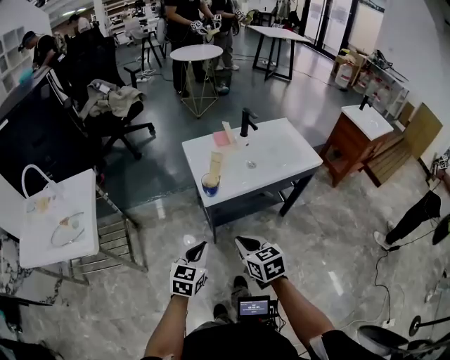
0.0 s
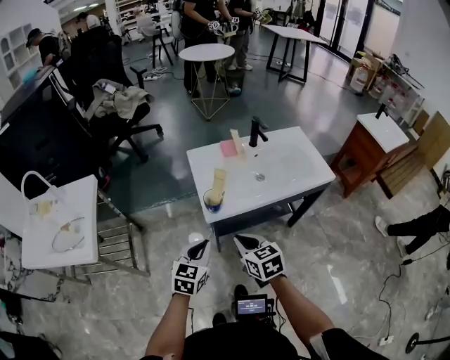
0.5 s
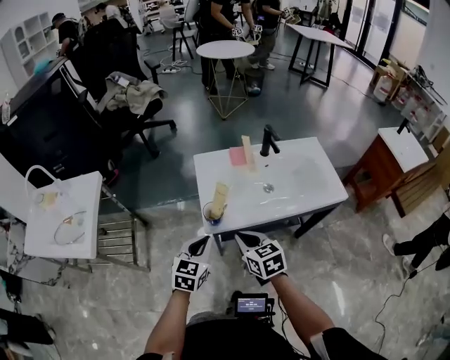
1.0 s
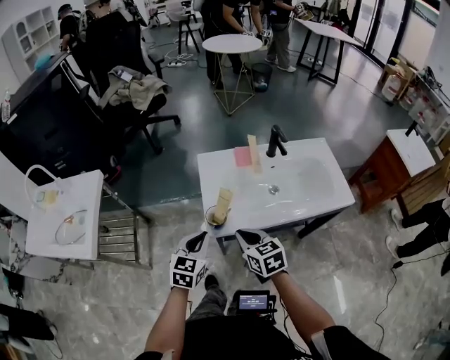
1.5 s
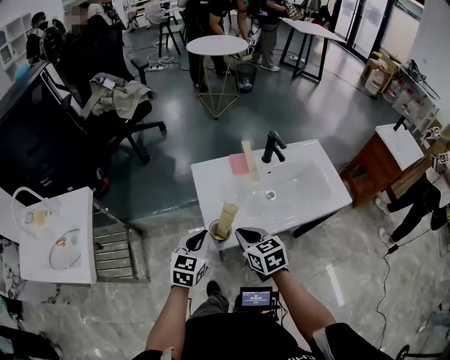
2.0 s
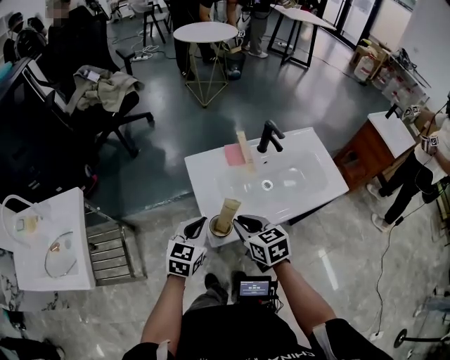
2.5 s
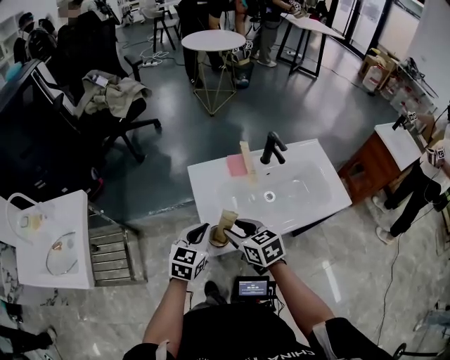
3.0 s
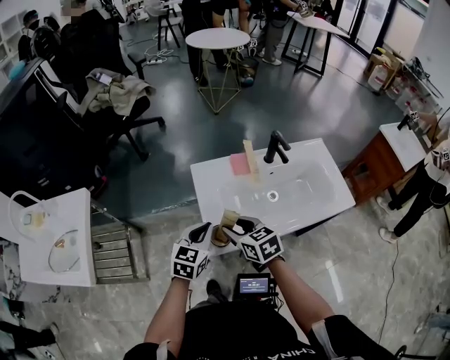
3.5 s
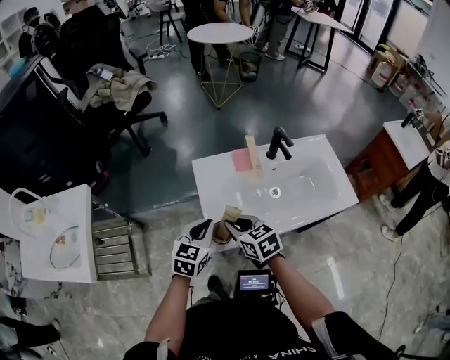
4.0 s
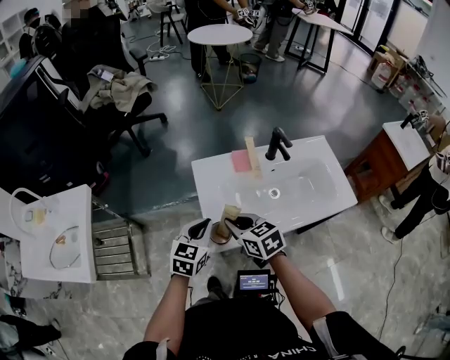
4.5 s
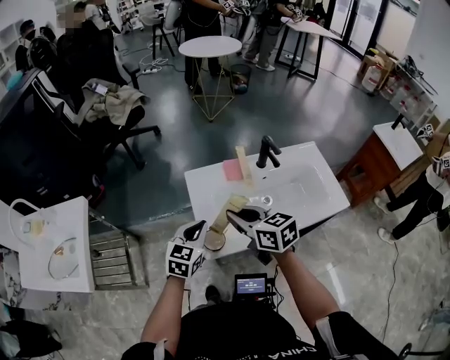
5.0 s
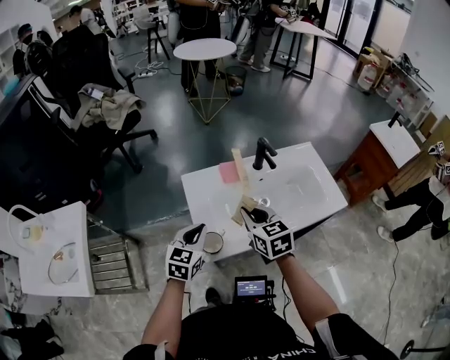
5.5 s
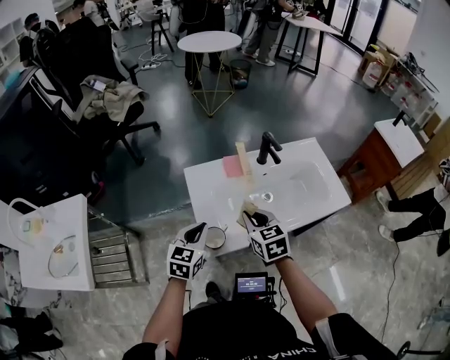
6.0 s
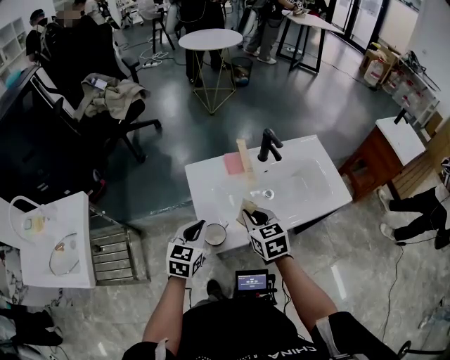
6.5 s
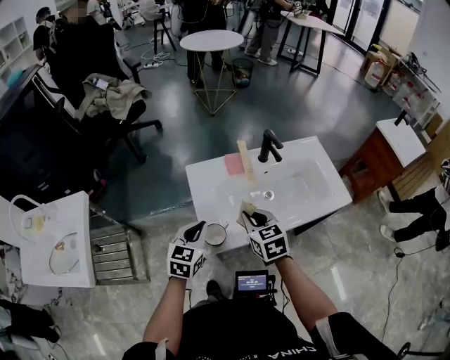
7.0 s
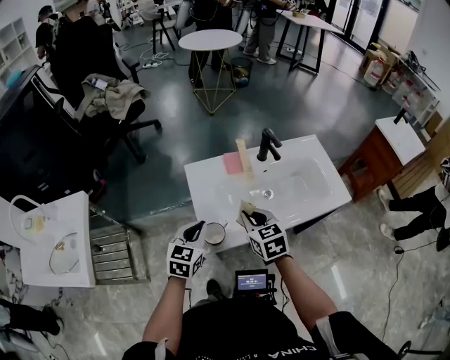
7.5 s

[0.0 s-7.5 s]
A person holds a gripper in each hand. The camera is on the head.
0.0 to 2.0 s: Both grippers travel together forward, approximately 25 cm.
2.0 to 4.0 s: The right gripper is displaced forward by some 5 cm, and opens, then closes once more.
4.0 to 5.5 s: The right gripper heads to the right and upward, covering roughly 10 cm.
5.5 to 7.5 s: The right gripper moves about 5 cm.

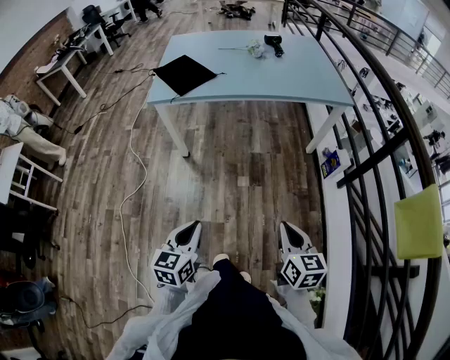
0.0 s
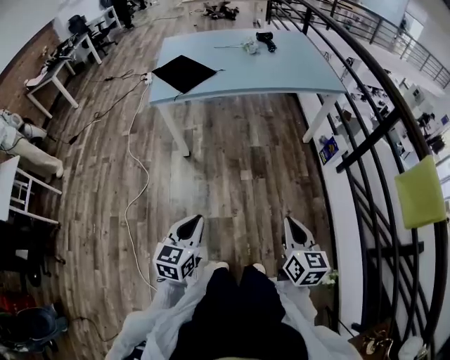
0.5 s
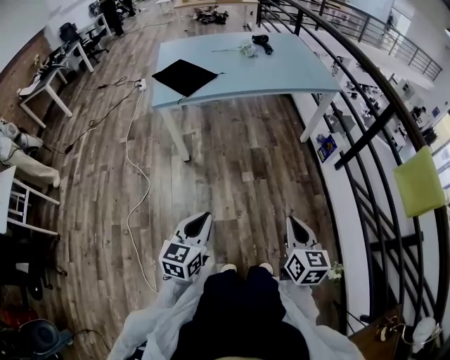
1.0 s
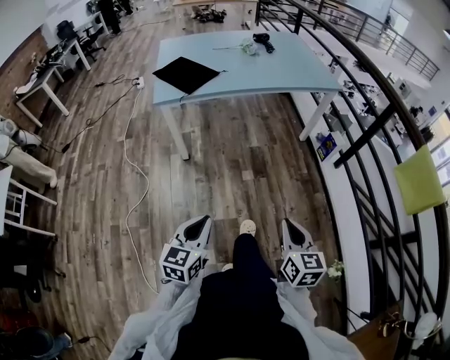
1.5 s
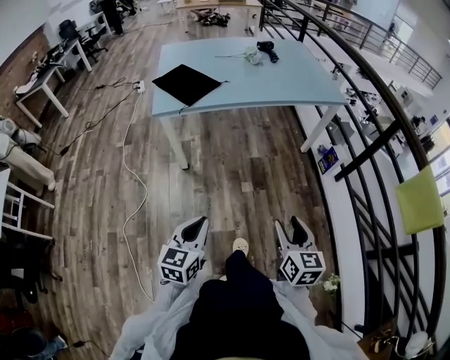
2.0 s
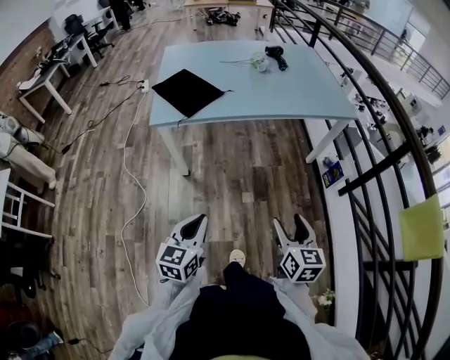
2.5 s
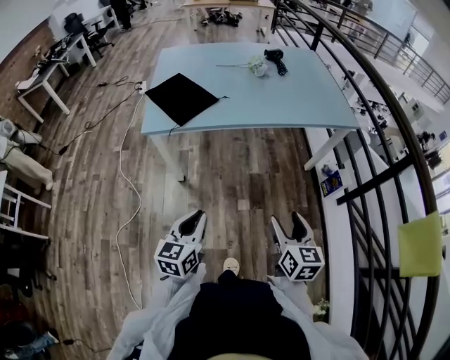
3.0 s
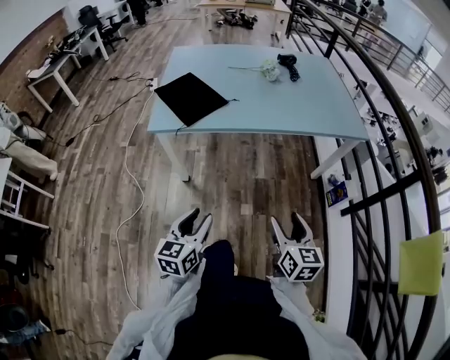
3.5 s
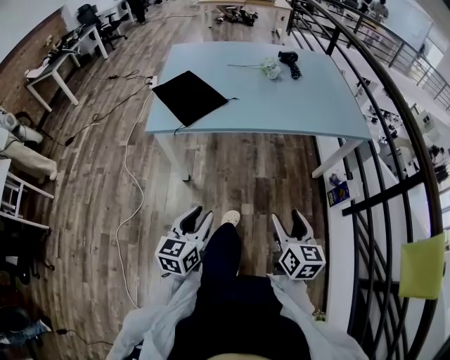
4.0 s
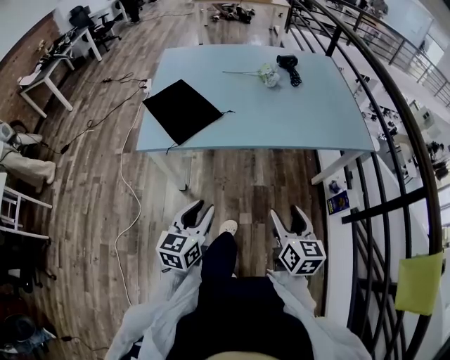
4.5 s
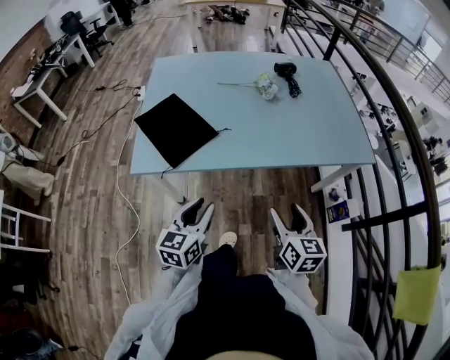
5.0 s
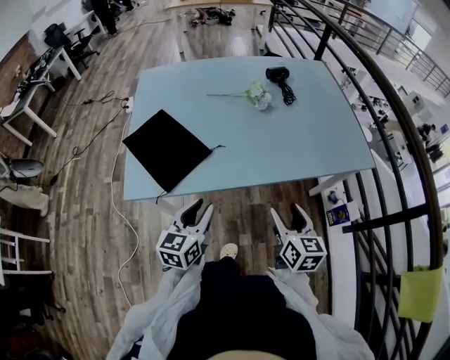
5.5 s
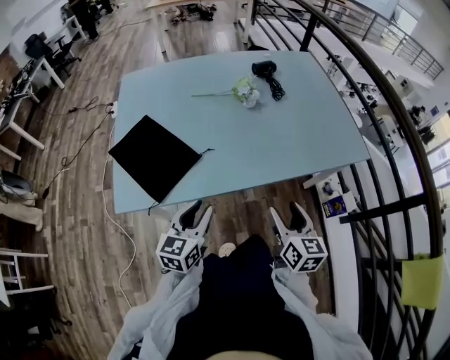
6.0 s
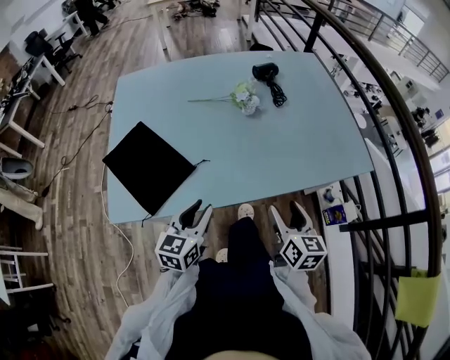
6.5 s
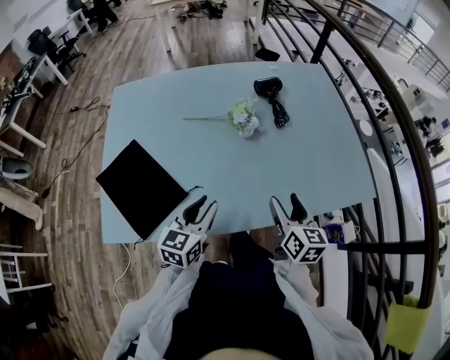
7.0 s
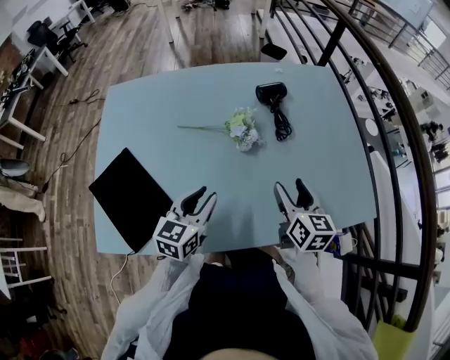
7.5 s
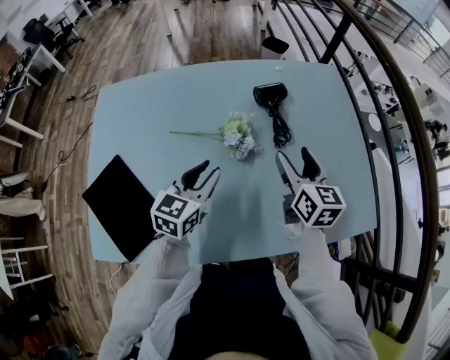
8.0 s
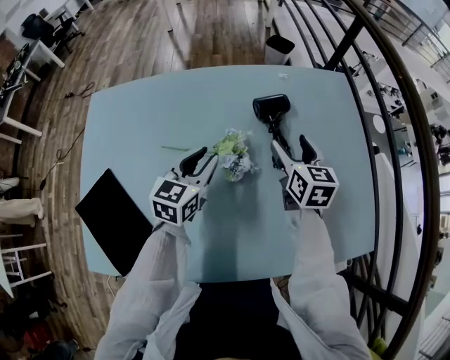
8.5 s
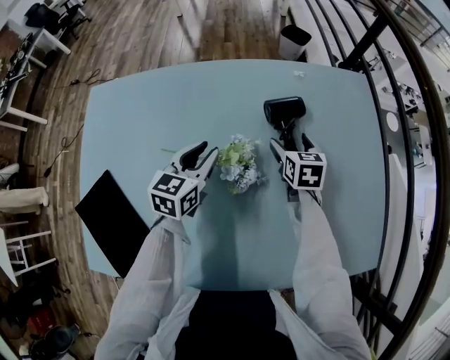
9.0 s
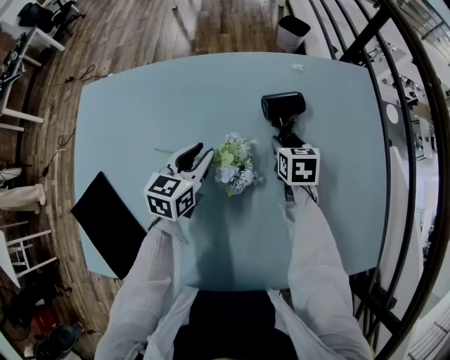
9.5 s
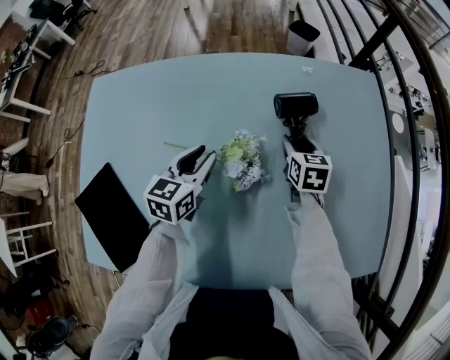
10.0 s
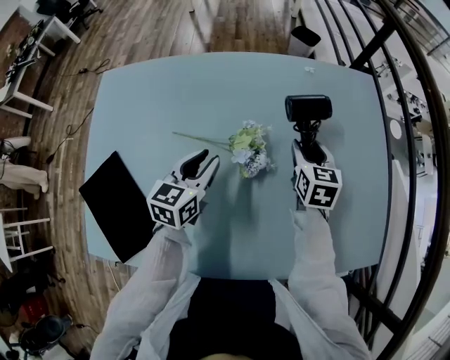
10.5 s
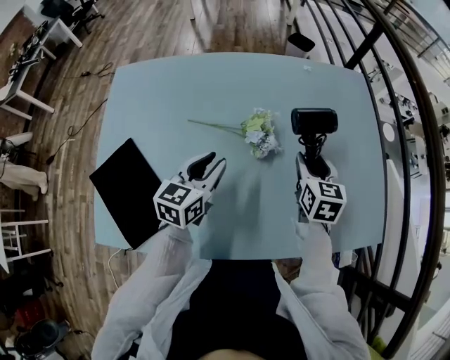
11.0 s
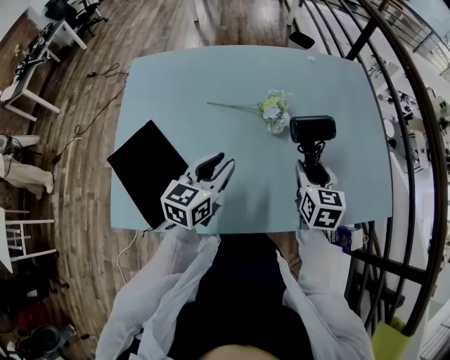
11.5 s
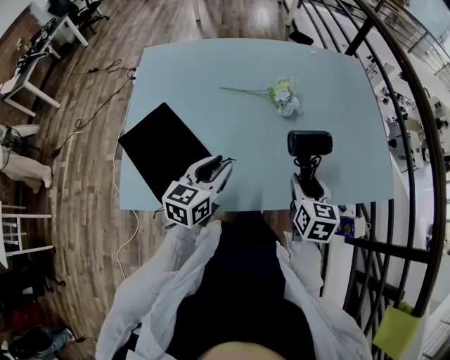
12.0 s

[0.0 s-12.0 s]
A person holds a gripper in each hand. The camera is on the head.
0.0 to 2.0 s: The two grippers go roughly 15 cm to the left. The right gripper opens its fingers.
2.0 to 4.0 s: Both grippers travel together forward, about 20 cm. The left gripper opens up.
4.0 to 6.0 s: Both grippers travel together forward, roughly 30 cm.
6.0 to 8.0 s: Both grippers travel together forward, roughly 40 cm.
8.0 to 10.0 s: The left gripper moves forward and downward, about 15 cm, while the right gripper heads forward and downward, covering roughly 25 cm, and turns by roughly 20 degrees.
10.0 to 12.0 s: The grippers both shift backward by some 35 cm.

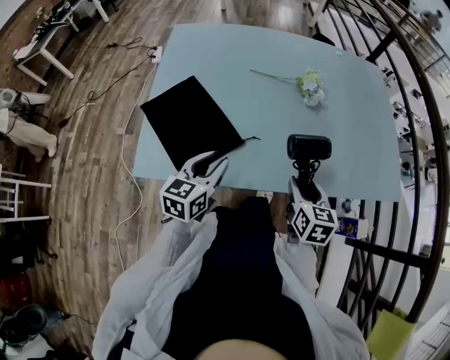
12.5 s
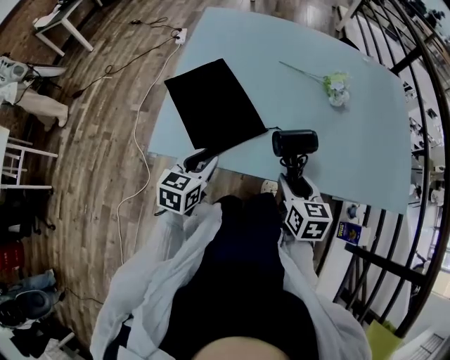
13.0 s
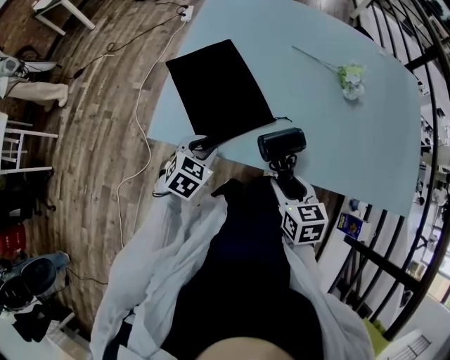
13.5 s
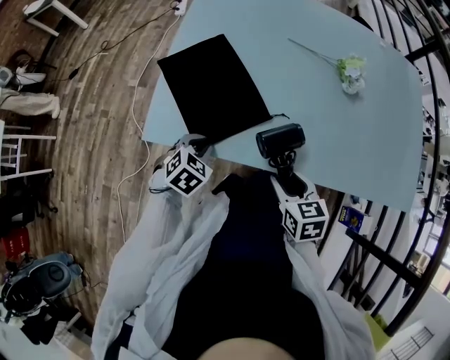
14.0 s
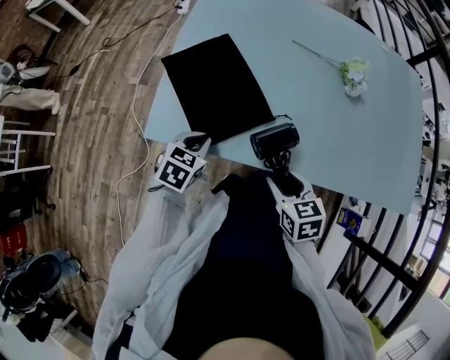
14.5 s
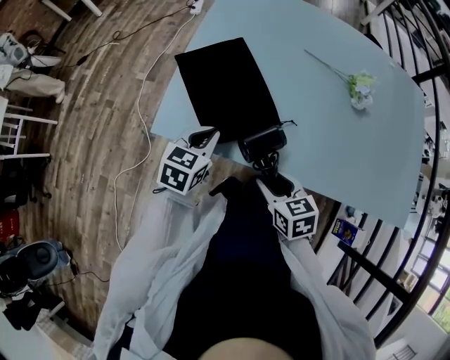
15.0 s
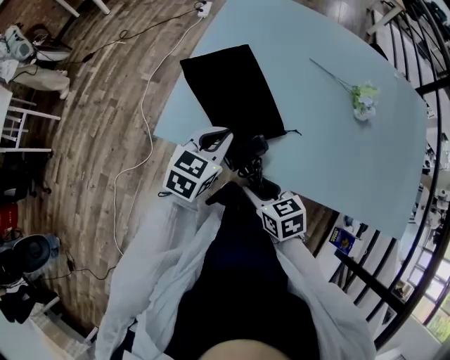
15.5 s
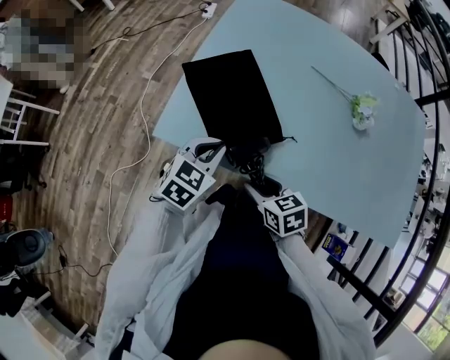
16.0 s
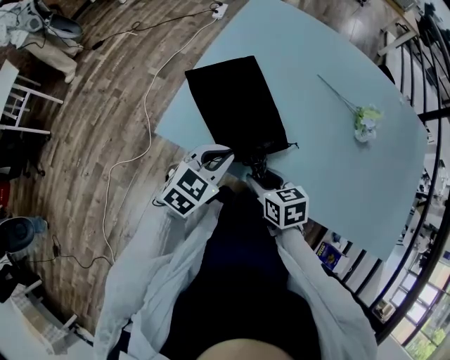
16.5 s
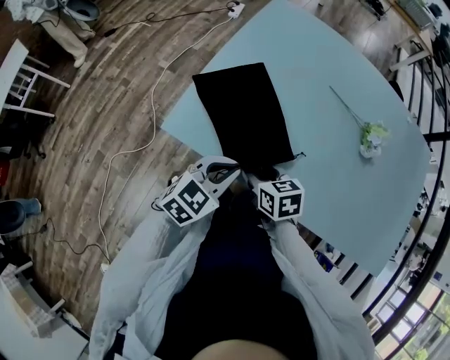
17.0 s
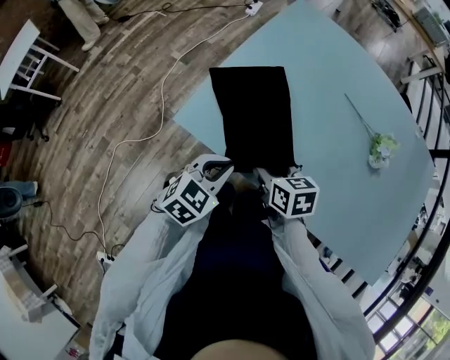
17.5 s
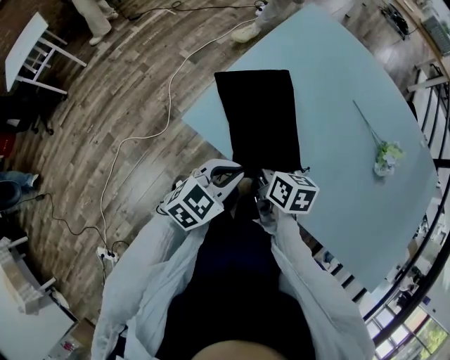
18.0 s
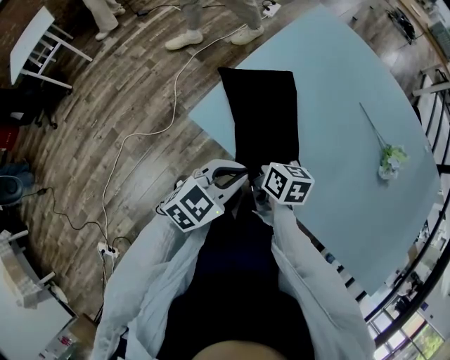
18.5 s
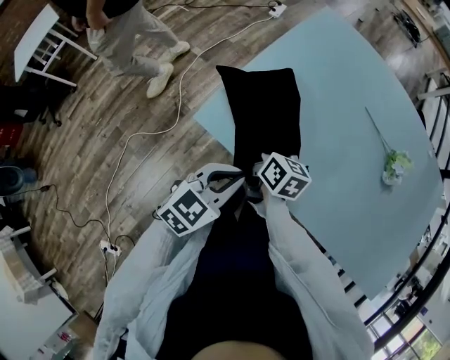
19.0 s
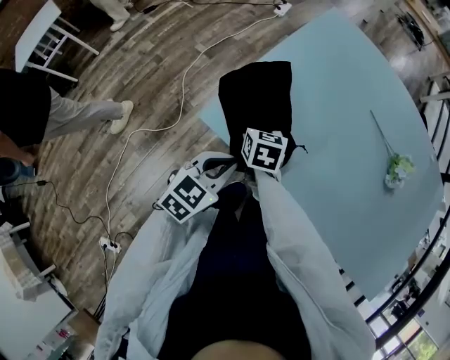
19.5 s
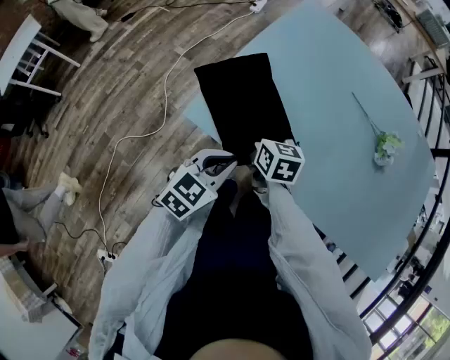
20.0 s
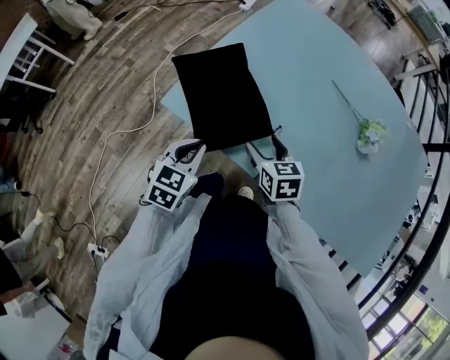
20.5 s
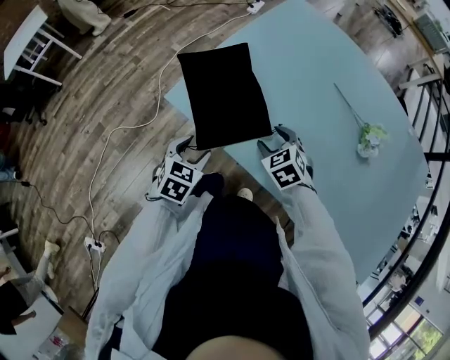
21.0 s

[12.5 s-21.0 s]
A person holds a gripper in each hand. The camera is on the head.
12.5 to 14.5 s: The right gripper shifts about 15 cm to the left and downward, and turns by roughly 30 degrees, while the left gripper travels downward and to the left by roughly 15 cm, rotates some 30 degrees, and closes.
14.5 to 16.5 s: The left gripper heads upward, covering approximately 10 cm; the right gripper is displaced forward and to the left by about 10 cm.
16.5 to 19.0 s: The left gripper moves some 5 cm; the right gripper travels forward and to the left by some 15 cm, and changes its angle by approximately 30 degrees.
19.0 to 21.0 s: The left gripper is displaced downward by approximately 10 cm, rotates approximately 30 degrees, and opens its fingers. Meanwhile the right gripper heads to the right, covering some 15 cm, and rolls counterclockwise, seen from behind, by approximately 60 degrees.
